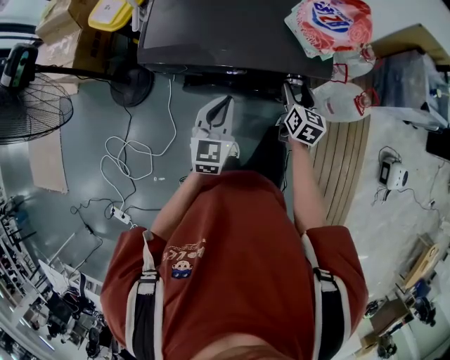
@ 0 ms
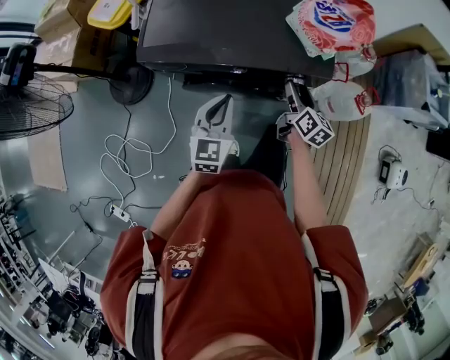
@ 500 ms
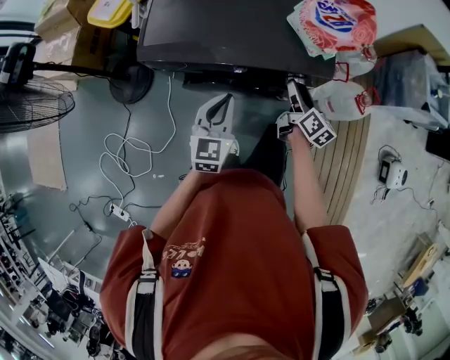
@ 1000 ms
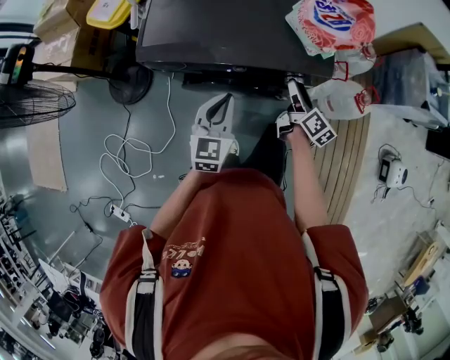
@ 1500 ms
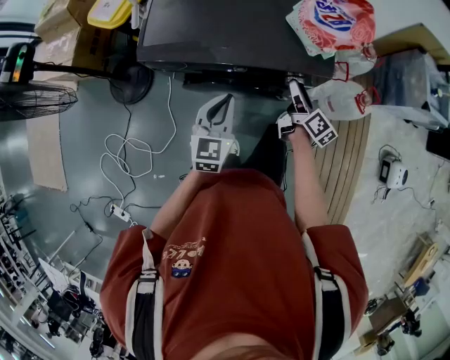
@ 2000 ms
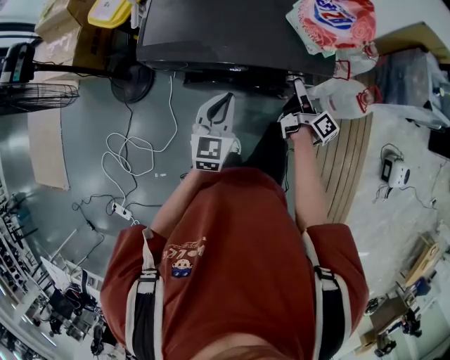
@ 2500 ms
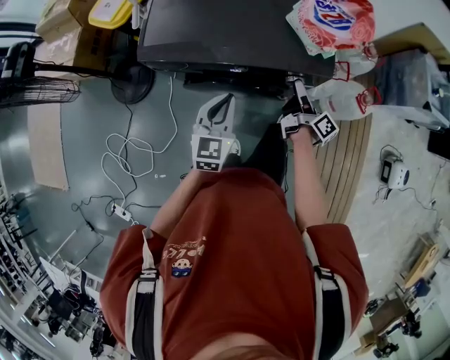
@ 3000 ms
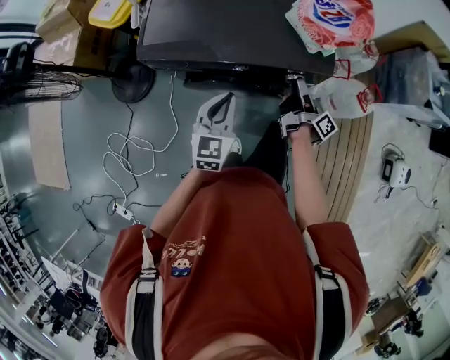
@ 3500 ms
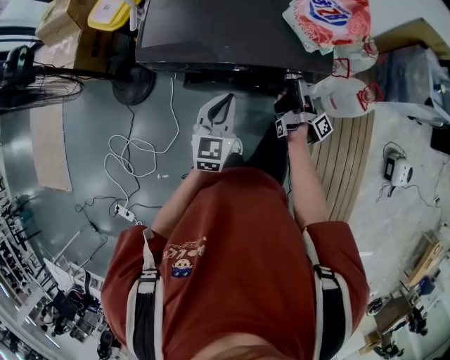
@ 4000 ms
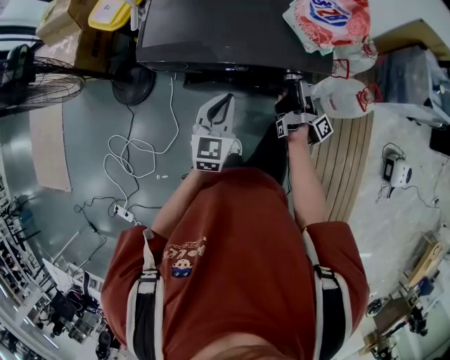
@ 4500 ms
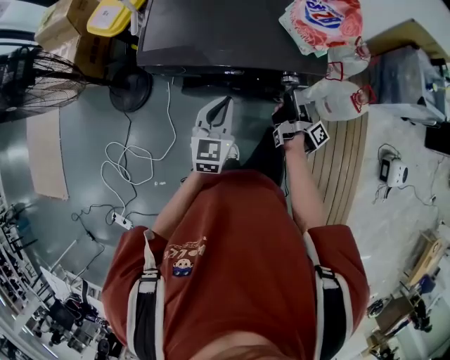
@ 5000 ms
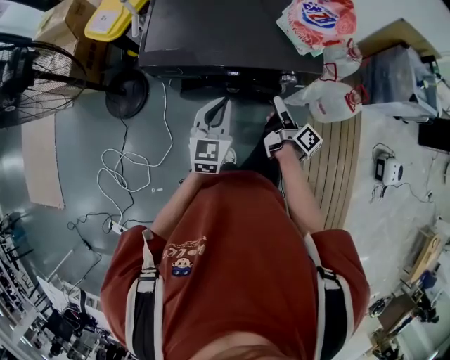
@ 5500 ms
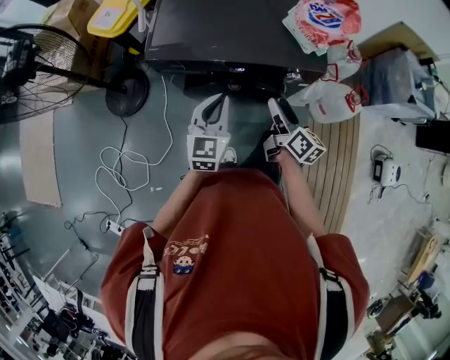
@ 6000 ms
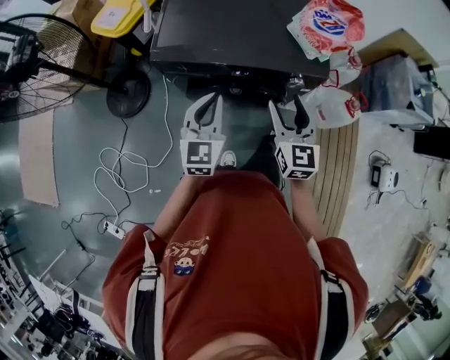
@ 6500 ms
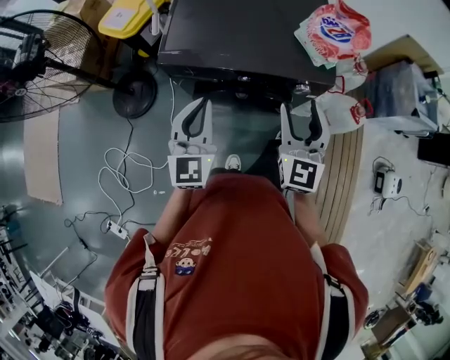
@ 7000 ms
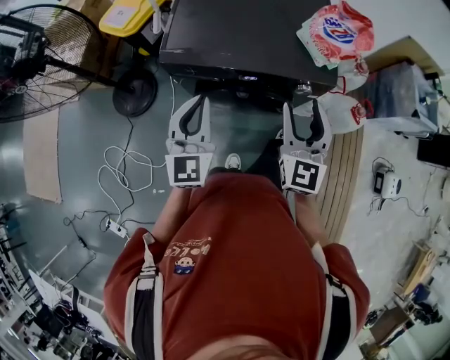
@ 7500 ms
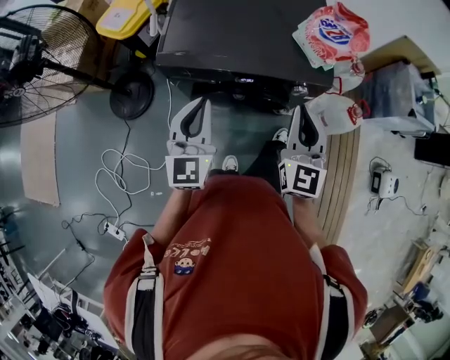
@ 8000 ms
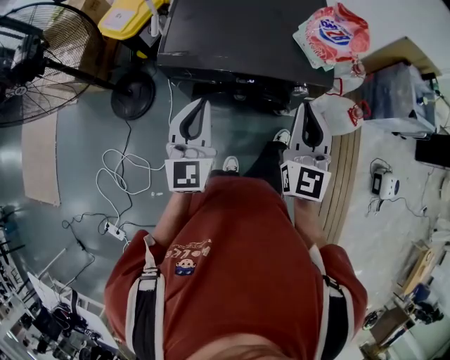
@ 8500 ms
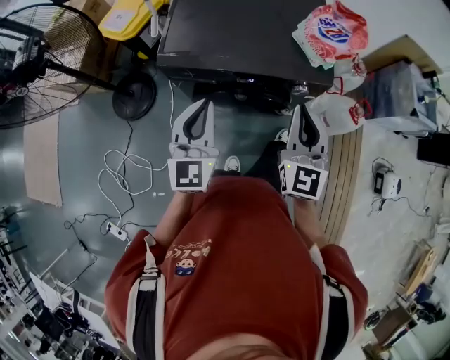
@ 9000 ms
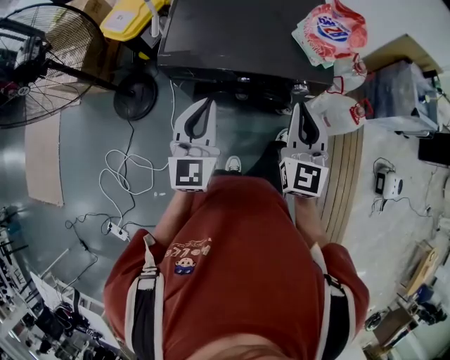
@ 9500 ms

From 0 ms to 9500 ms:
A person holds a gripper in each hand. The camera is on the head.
From 0 ms to 2000 ms: The right gripper rotates approximately 40 degrees.
From 2000 ms to 4000 ms: The right gripper twists about 50 degrees clockwise, seen from behind.
From 4000 ms to 5500 ms: The right gripper shifts some 10 cm backward and to the left, and turns by about 30 degrees.
From 5500 ms to 7500 ms: The right gripper goes roughly 20 cm upward, and rotates around the line of its fingers by roughly 90 degrees, counterclockwise from behind. Meanwhile the left gripper shifts approximately 15 cm upward and to the left.
From 7500 ms to 9500 ms: The right gripper closes.

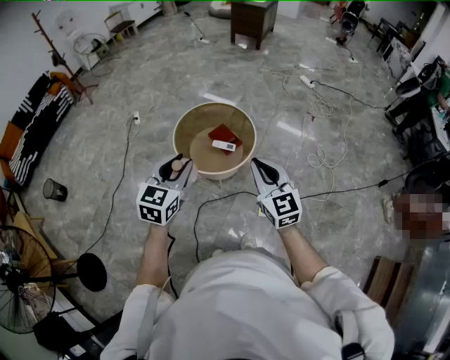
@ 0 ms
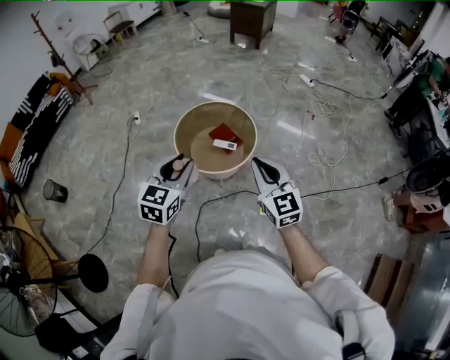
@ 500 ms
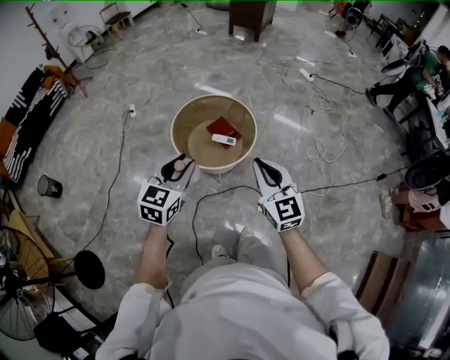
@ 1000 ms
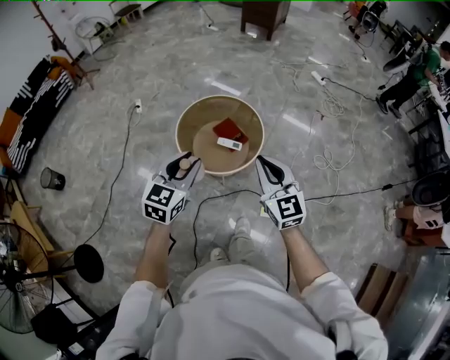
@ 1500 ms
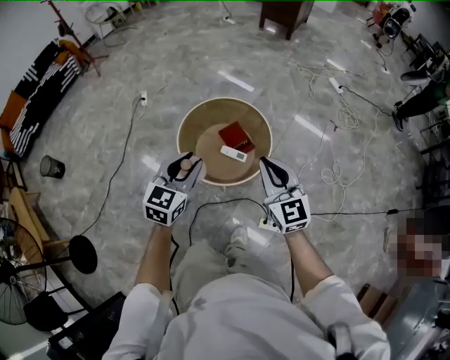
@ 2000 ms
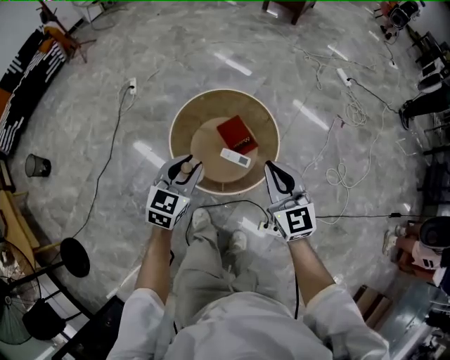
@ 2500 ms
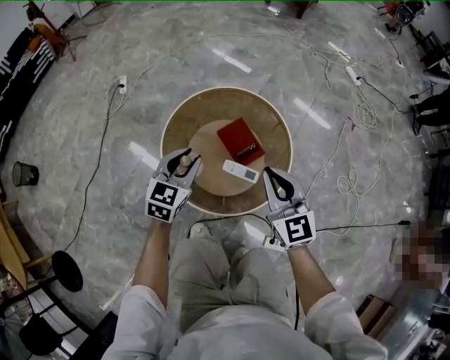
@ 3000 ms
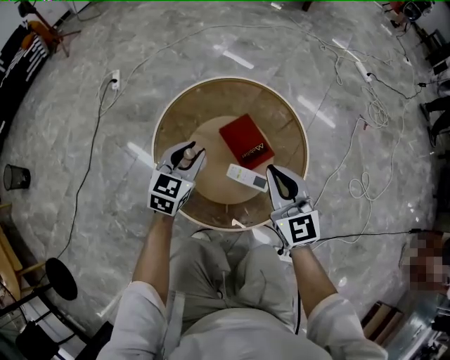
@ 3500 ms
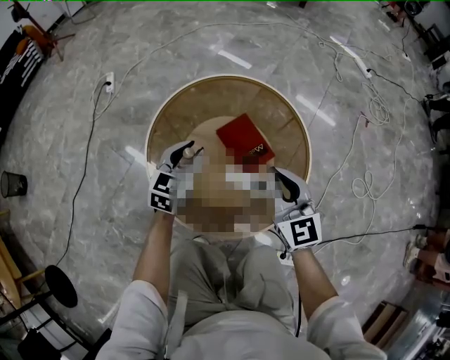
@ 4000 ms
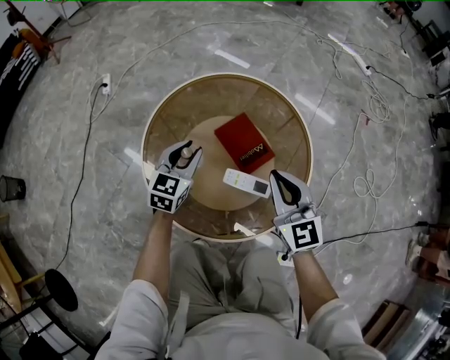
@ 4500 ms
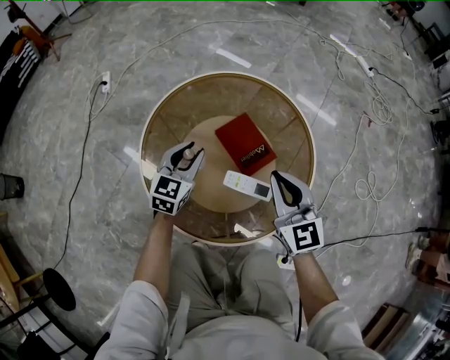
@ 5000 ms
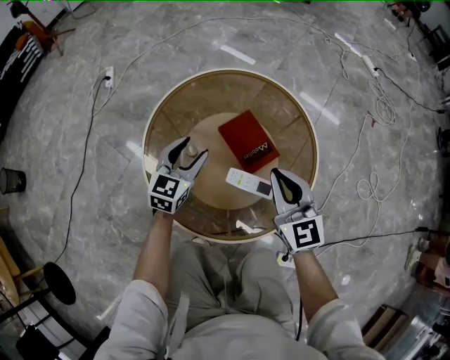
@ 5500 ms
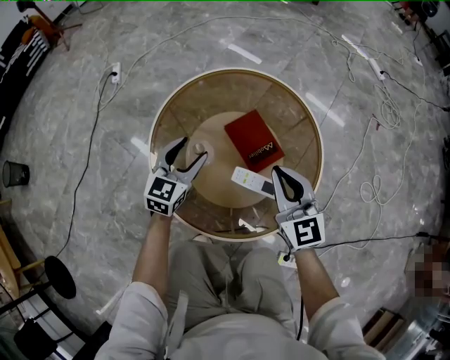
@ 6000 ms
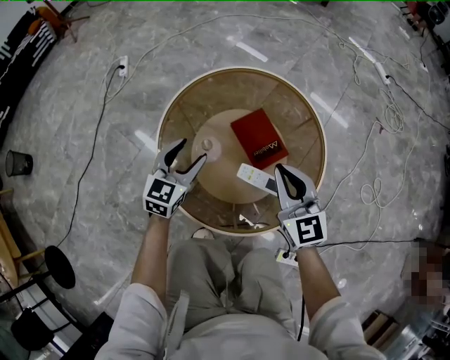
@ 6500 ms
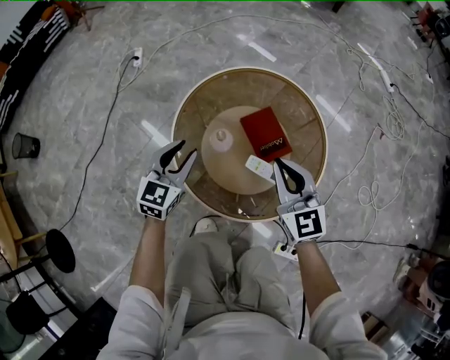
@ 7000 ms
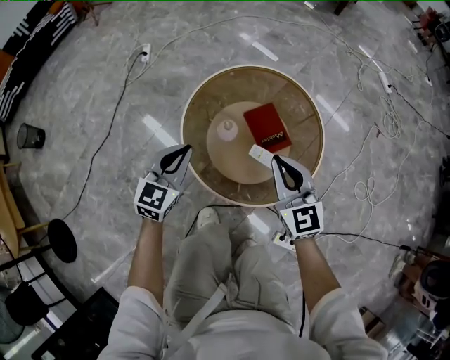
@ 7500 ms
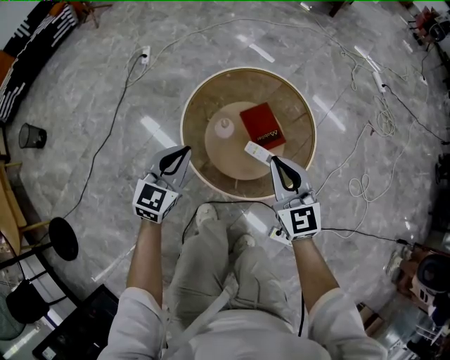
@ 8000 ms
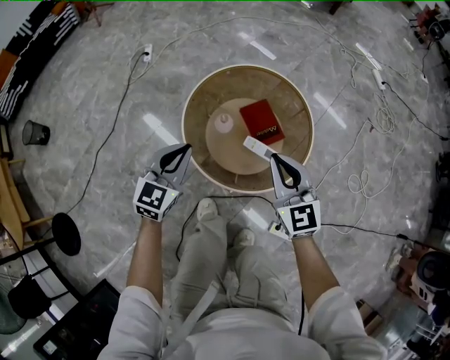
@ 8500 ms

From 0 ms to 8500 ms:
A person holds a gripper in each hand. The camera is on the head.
From 0 ms to 2000 ms: The left gripper moves forward and downward, about 20 cm; the right gripper goes roughly 20 cm forward.
From 2000 ms to 4000 ms: The grippers both shift downward and forward by approximately 50 cm.
From 4000 ms to 6500 ms: The left gripper ends up approximately 5 cm from where it was, and opens.
From 6500 ms to 8500 ms: Both grippers travel together upward and backward, some 25 cm. The left gripper closes its fingers.

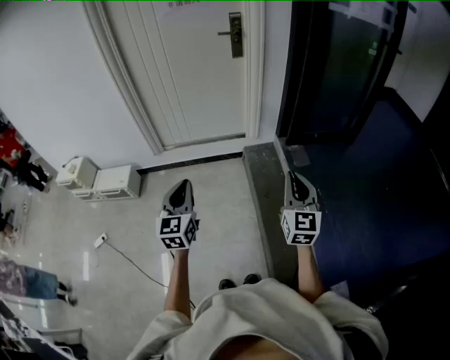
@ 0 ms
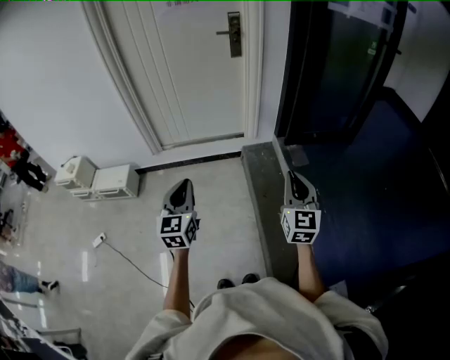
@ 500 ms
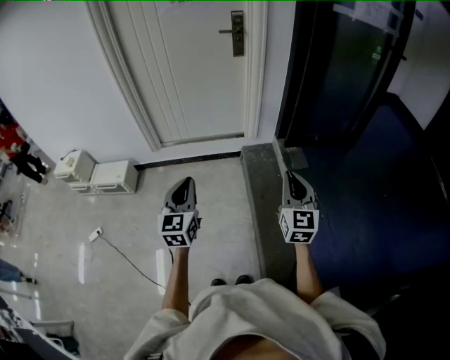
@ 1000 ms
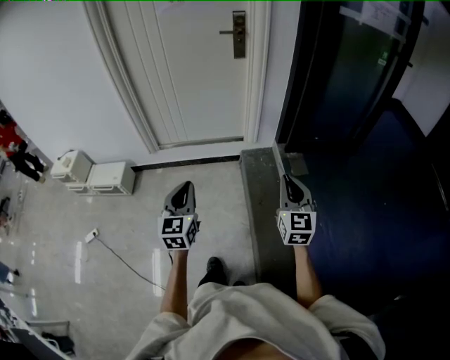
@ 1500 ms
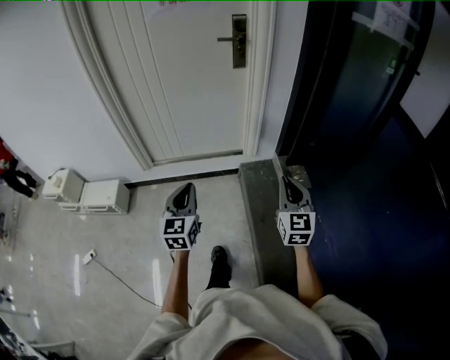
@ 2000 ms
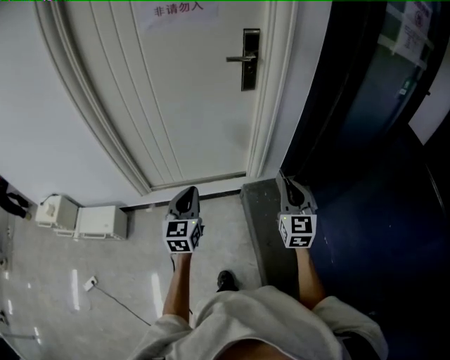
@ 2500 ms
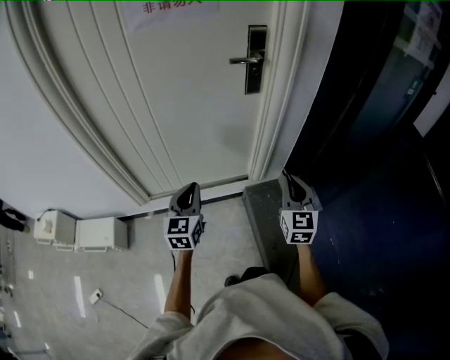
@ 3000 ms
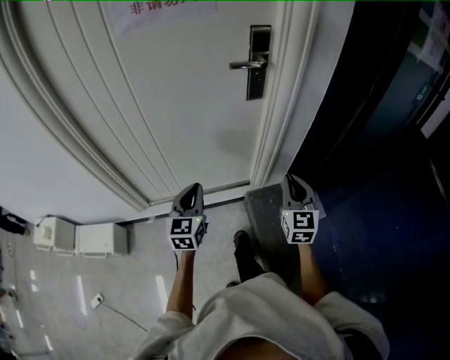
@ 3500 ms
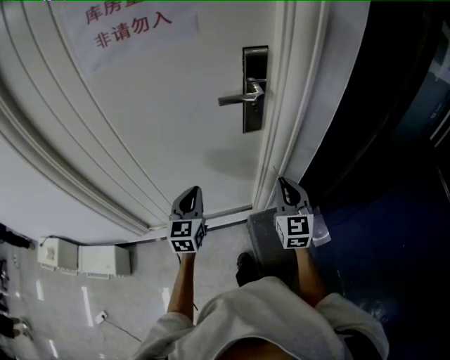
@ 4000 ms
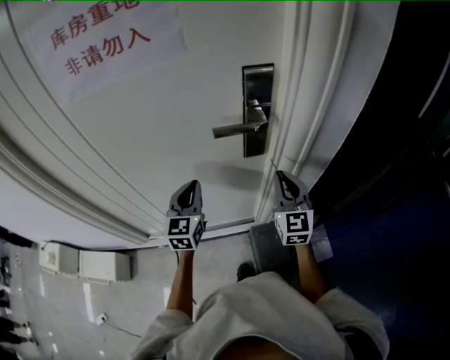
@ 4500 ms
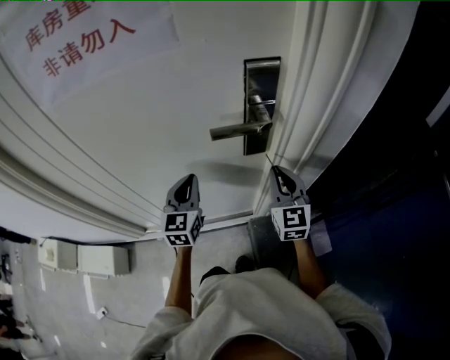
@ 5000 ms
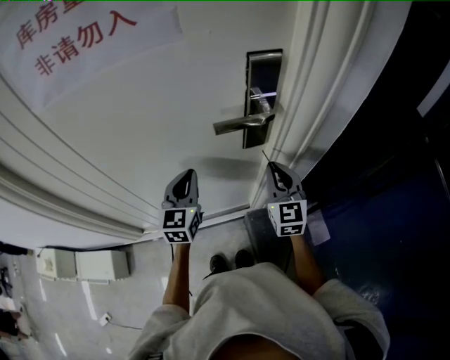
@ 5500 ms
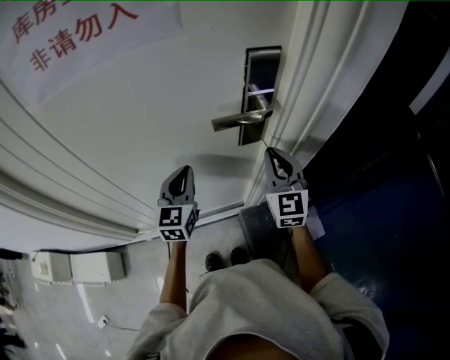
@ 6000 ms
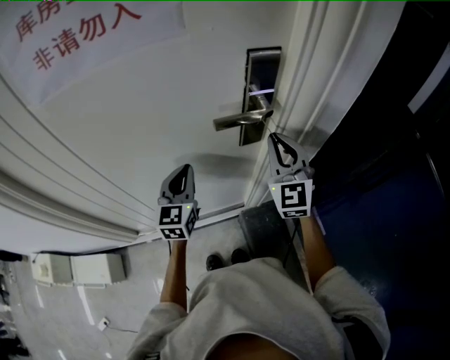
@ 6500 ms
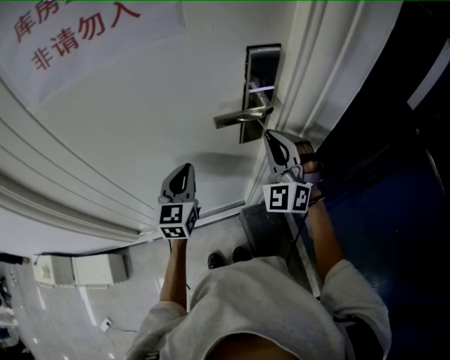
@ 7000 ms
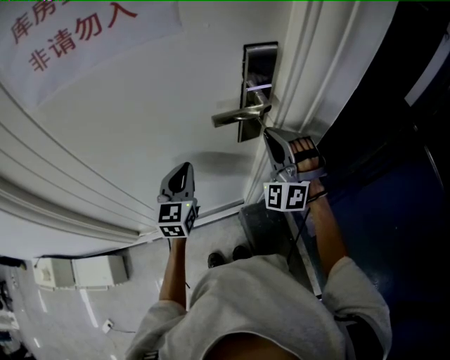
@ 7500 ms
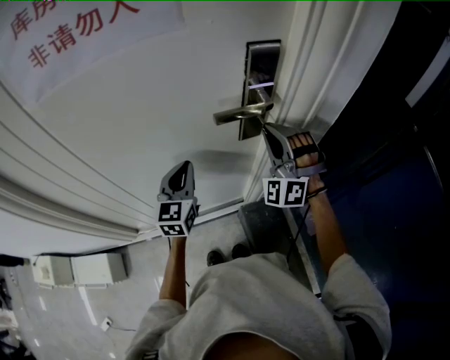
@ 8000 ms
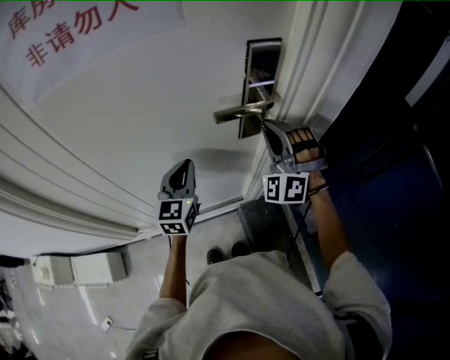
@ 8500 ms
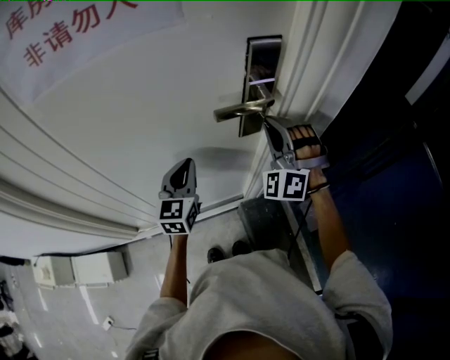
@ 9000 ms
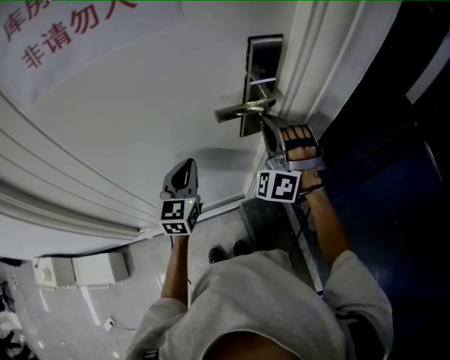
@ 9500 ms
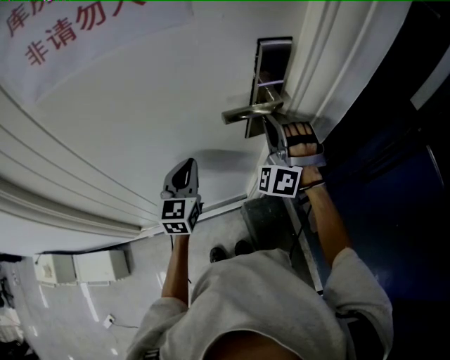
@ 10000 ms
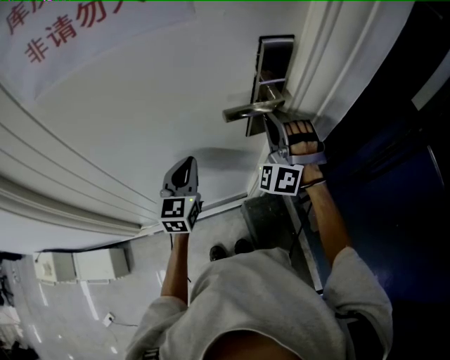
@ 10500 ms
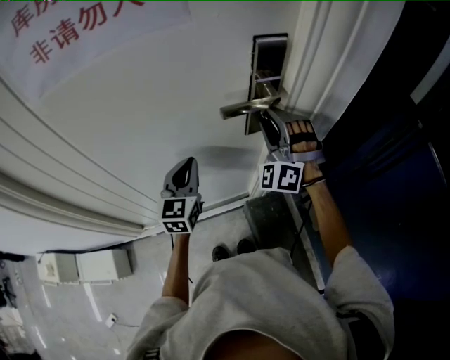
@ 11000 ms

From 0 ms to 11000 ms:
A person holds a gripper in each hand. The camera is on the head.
From 0 ms to 2000 ms: The two grippers go some 25 cm forward.
From 2000 ms to 3500 ms: The grippers both shift forward by about 40 cm.
From 3500 ms to 5500 ms: Both grippers travel together forward, roughly 30 cm.
From 5500 ms to 7500 ms: The right gripper moves upward, roughly 5 cm, and rotates around the line of its fingers by about 70 degrees, counterclockwise from behind.
From 7500 ms to 9000 ms: The grippers stay close to where they were, moving slightly.
From 9000 ms to 11000 ms: The right gripper opens.
